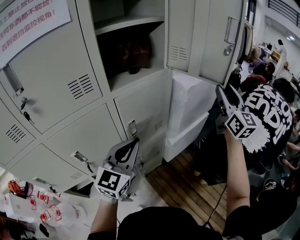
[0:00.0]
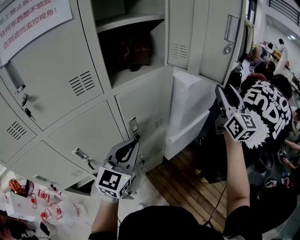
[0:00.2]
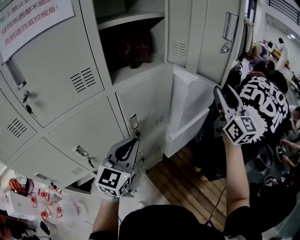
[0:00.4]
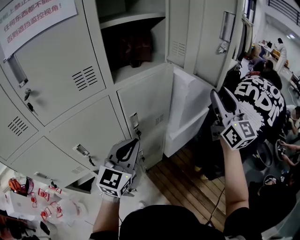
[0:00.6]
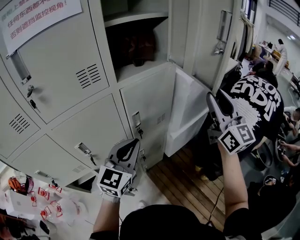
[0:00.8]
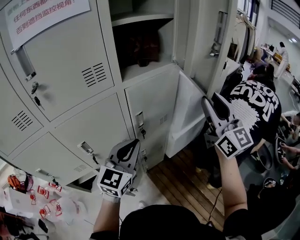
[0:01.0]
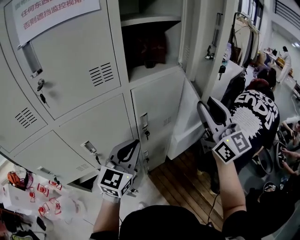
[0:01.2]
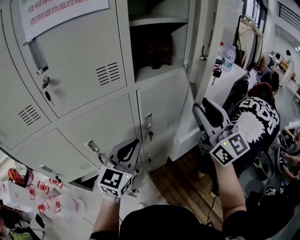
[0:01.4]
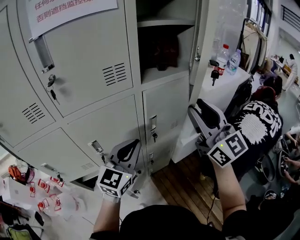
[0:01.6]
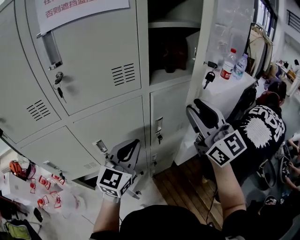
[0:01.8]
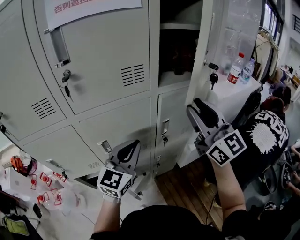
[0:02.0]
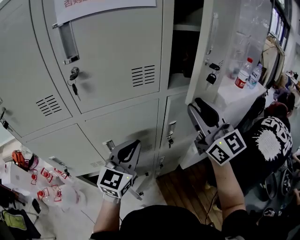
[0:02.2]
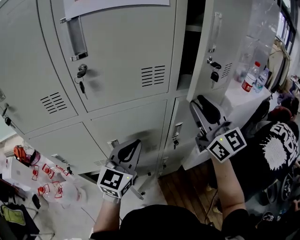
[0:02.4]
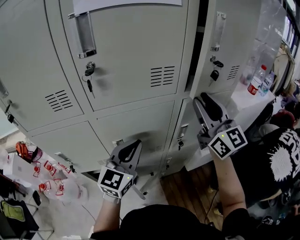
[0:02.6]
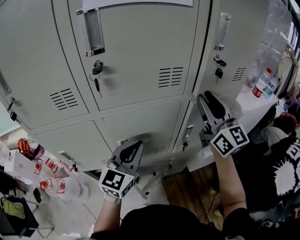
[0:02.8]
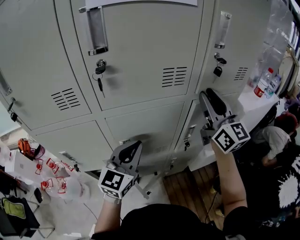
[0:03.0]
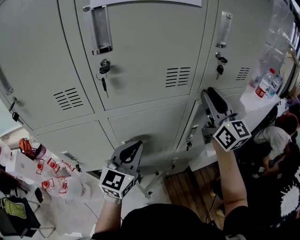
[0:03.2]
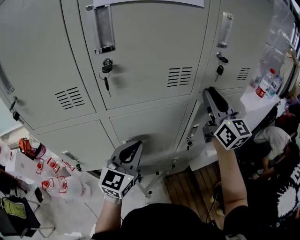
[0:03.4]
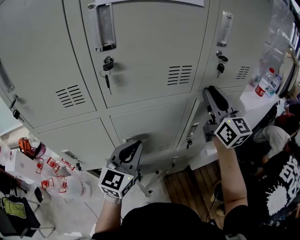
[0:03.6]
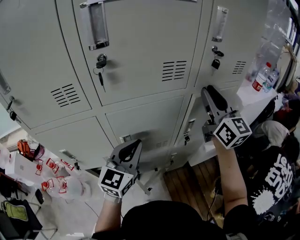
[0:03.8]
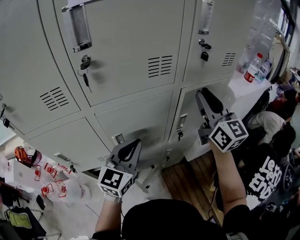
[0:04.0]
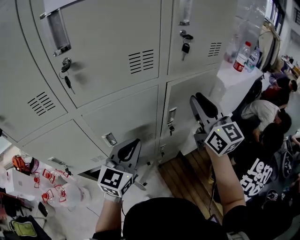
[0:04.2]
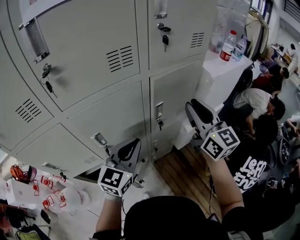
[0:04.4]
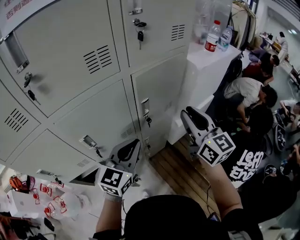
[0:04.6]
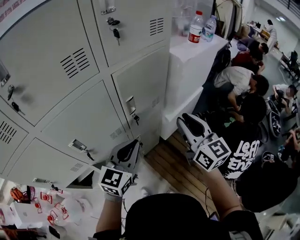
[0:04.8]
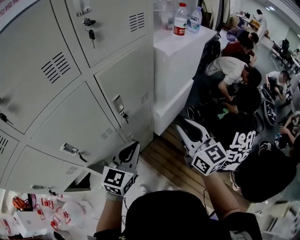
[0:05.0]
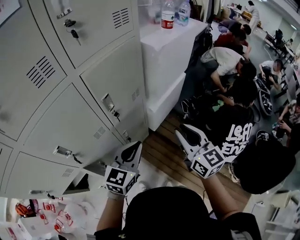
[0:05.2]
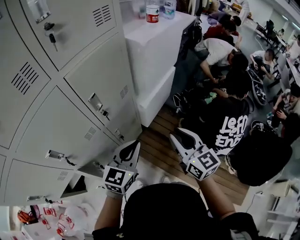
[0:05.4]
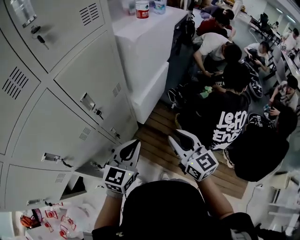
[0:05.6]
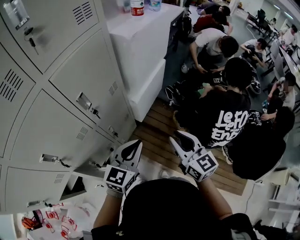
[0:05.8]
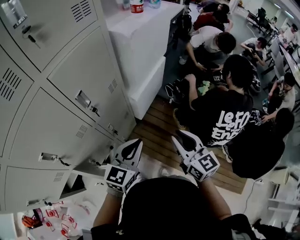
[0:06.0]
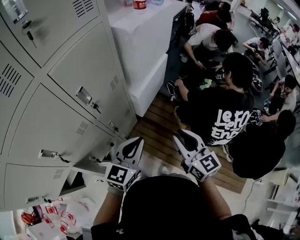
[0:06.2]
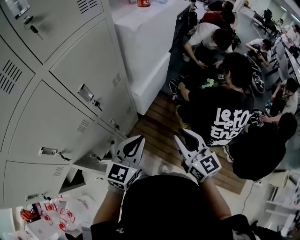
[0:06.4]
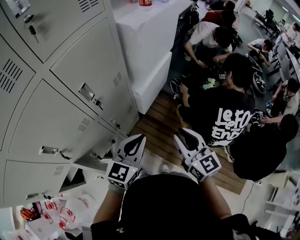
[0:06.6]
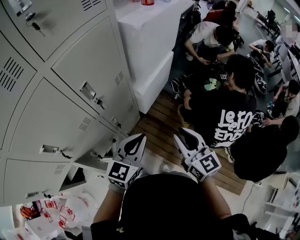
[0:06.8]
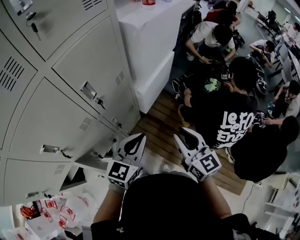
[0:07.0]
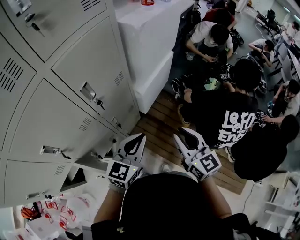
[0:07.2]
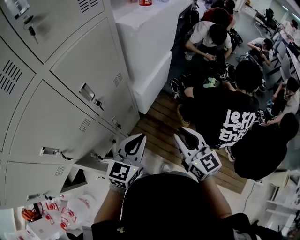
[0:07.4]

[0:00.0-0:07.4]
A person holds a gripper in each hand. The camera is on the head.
0:00.0 to 0:01.4: The left gripper is displaced to the left by approximately 5 cm. The right gripper heads to the left and backward, covering approximately 25 cm, and changes its angle by roughly 20 degrees.
0:01.4 to 0:03.0: The left gripper travels to the left by roughly 15 cm. Meanwhile the right gripper heads forward and to the left, covering roughly 20 cm.
0:03.0 to 0:04.4: The right gripper heads downward, backward and to the right, covering roughly 15 cm, while the left gripper shifts about 10 cm to the right.
0:04.4 to 0:06.0: The left gripper shifts by some 25 cm, and swivels some 30 degrees; the right gripper moves roughly 35 cm, and changes its angle by roughly 30 degrees.
0:06.0 to 0:07.4: The grippers stay close to where they were, moving slightly.

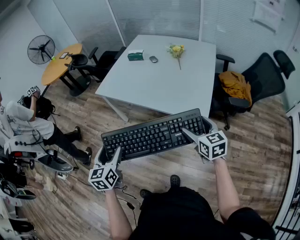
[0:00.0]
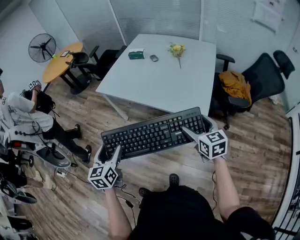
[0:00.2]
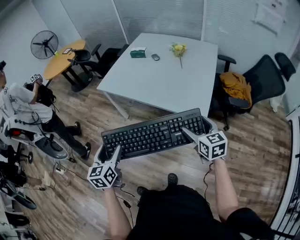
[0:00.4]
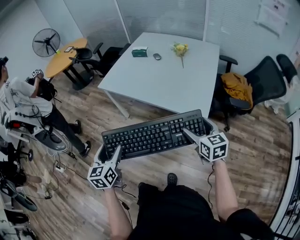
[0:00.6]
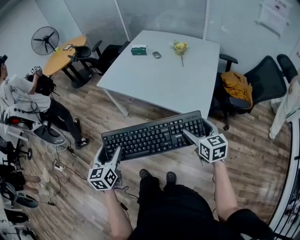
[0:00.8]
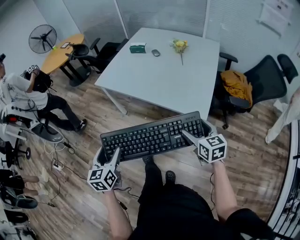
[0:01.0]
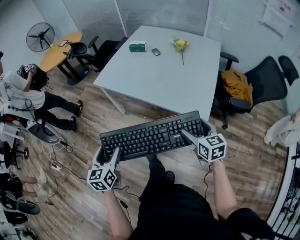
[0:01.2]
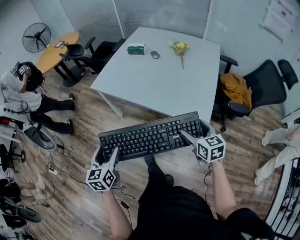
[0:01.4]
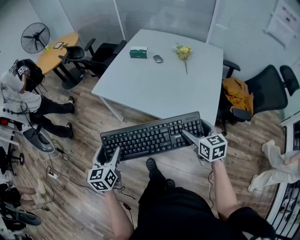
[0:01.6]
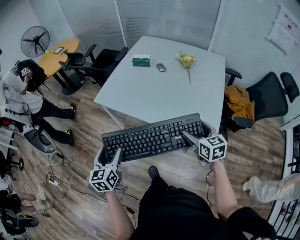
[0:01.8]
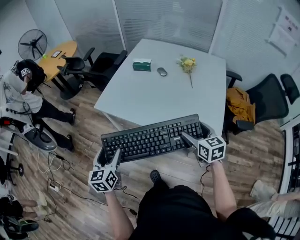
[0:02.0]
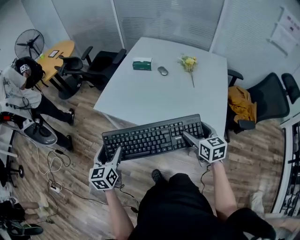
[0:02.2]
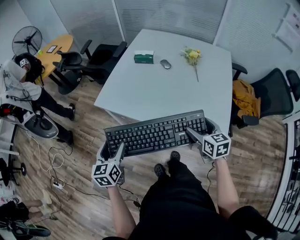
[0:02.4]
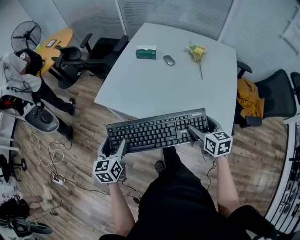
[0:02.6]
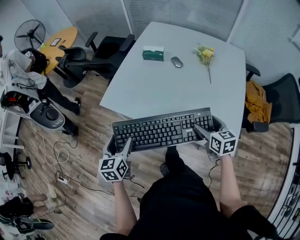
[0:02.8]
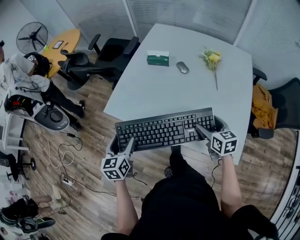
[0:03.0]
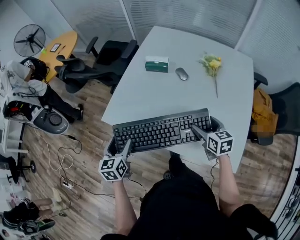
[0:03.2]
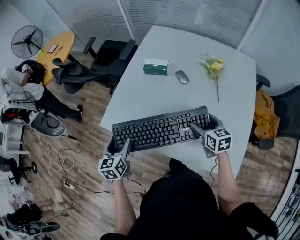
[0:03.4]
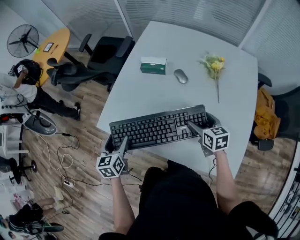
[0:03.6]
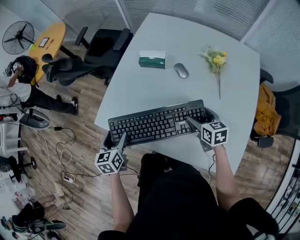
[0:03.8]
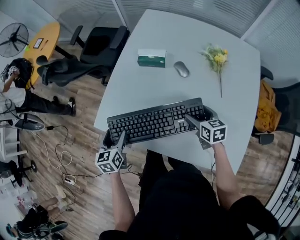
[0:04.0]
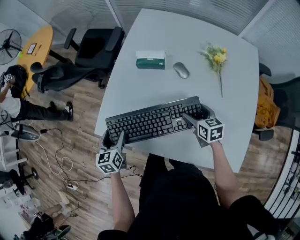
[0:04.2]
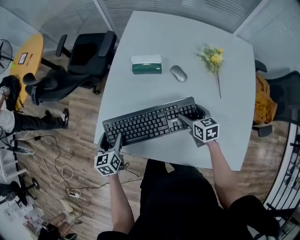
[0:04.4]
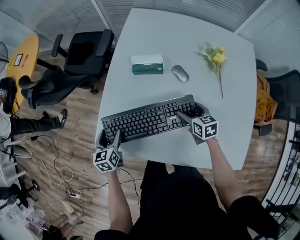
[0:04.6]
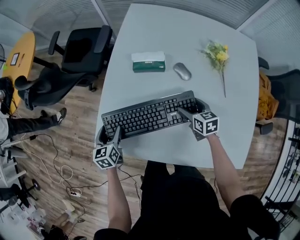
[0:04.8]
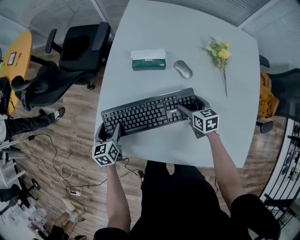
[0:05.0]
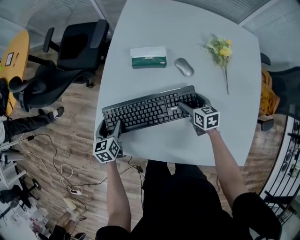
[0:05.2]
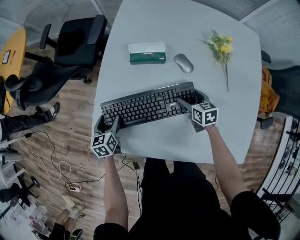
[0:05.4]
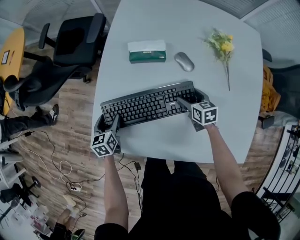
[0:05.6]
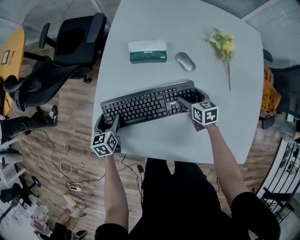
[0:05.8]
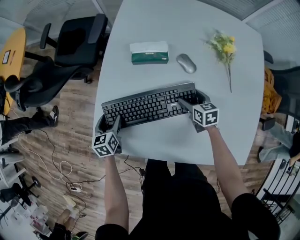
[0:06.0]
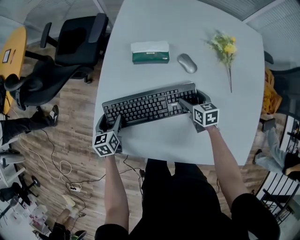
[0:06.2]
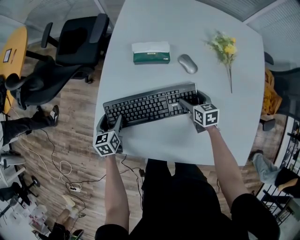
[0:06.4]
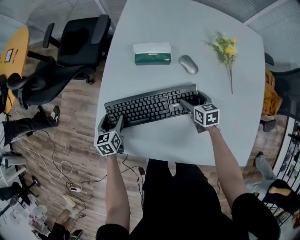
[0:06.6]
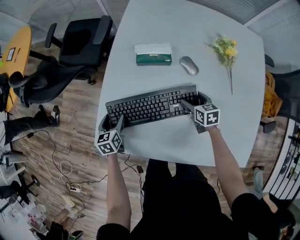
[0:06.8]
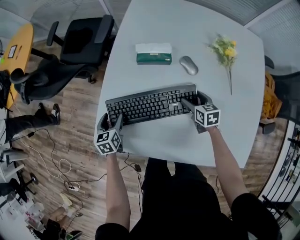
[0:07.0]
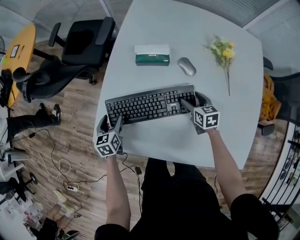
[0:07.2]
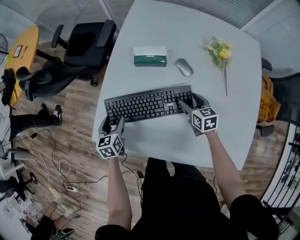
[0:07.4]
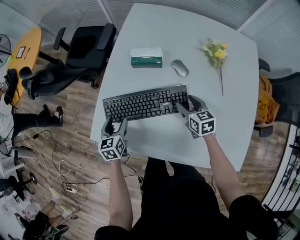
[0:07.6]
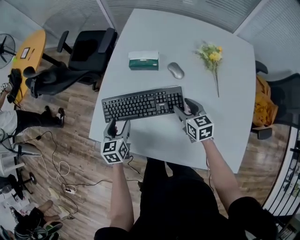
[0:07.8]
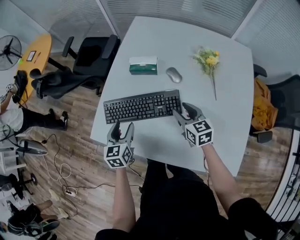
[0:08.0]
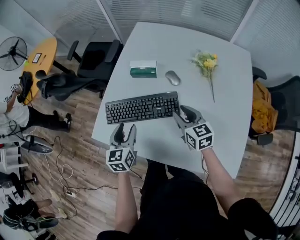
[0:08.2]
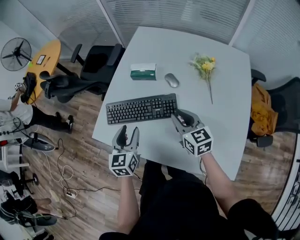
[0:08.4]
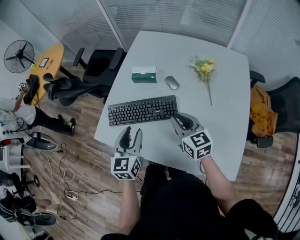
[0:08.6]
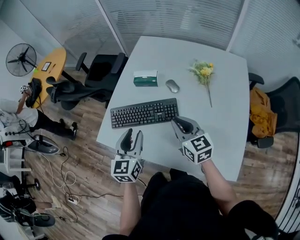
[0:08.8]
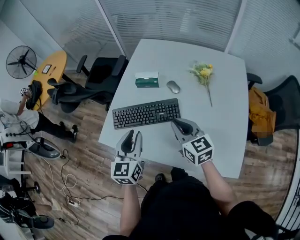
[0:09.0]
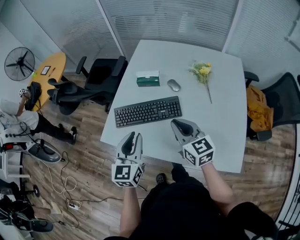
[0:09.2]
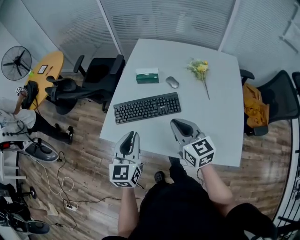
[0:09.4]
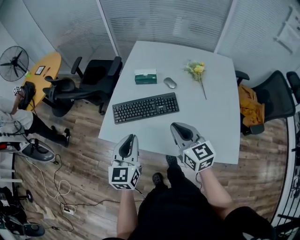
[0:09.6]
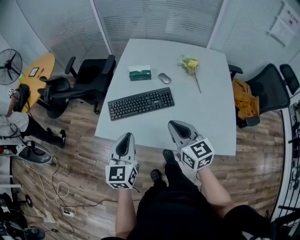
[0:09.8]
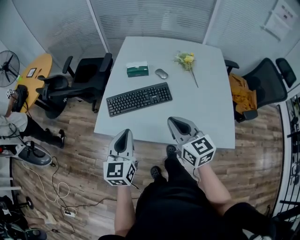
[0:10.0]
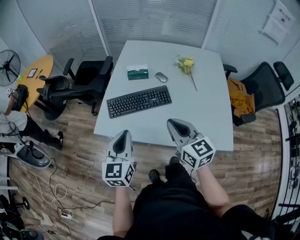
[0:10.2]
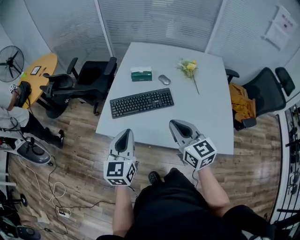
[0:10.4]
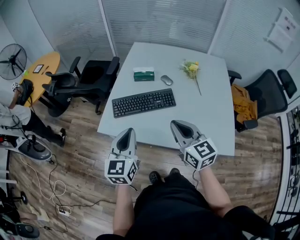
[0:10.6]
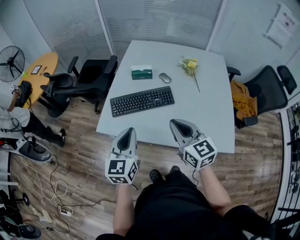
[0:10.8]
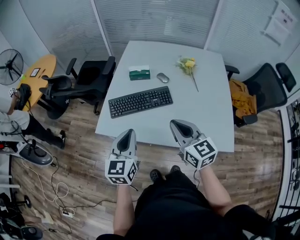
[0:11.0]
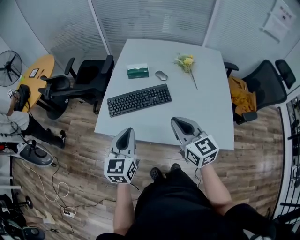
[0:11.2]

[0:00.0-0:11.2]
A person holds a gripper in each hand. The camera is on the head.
0:00.0 to 0:01.6: Both grippers move forward, about 10 cm.
0:01.6 to 0:03.2: Both grippers move forward, about 35 cm.
0:03.2 to 0:04.8: Both grippers travel together forward and downward, roughly 25 cm.
0:04.8 to 0:06.4: Both grippers travel together downward, about 5 cm.
0:06.4 to 0:08.0: The right gripper moves upward and backward, roughly 15 cm, changes its angle by roughly 20 degrees, and closes. Meanwhile the left gripper is displaced upward, to the right and backward by roughly 20 cm.
0:08.0 to 0:09.6: The left gripper travels upward and backward by some 25 cm, changes its angle by about 20 degrees, and closes its fingers. Meanwhile the right gripper shifts approximately 25 cm backward, upward and to the left, and closes.
0:09.6 to 0:11.2: The right gripper is displaced backward by about 5 cm.

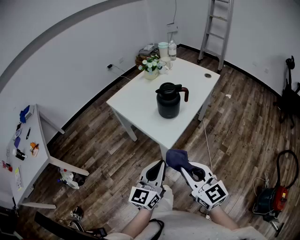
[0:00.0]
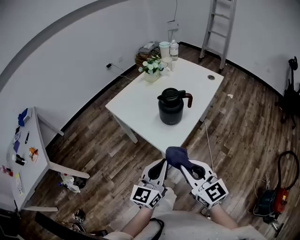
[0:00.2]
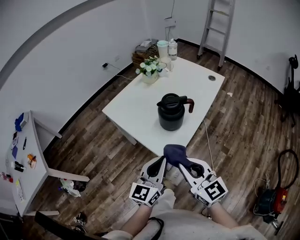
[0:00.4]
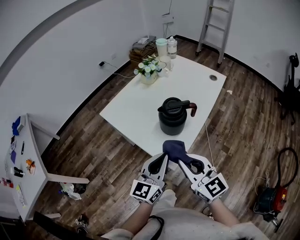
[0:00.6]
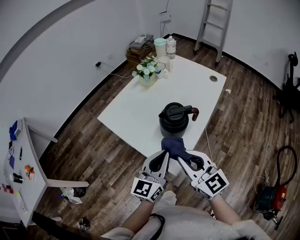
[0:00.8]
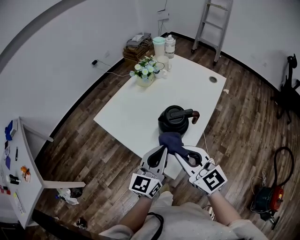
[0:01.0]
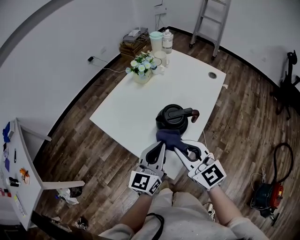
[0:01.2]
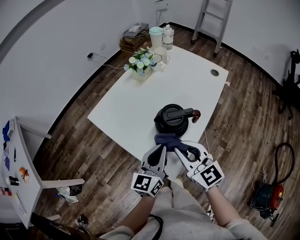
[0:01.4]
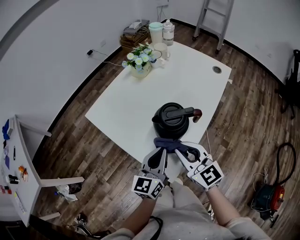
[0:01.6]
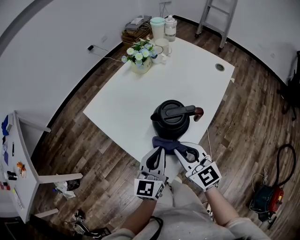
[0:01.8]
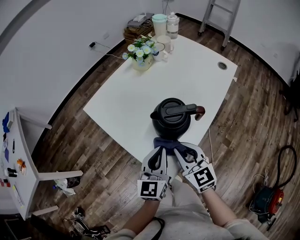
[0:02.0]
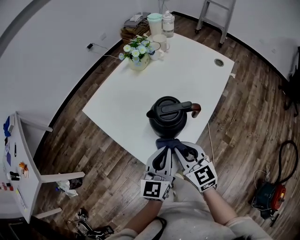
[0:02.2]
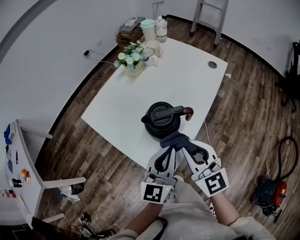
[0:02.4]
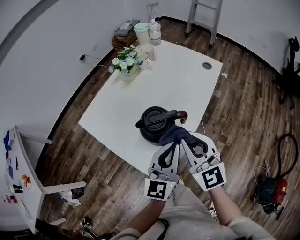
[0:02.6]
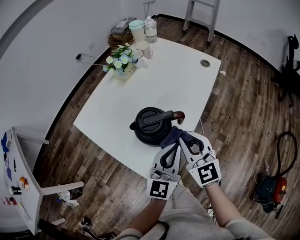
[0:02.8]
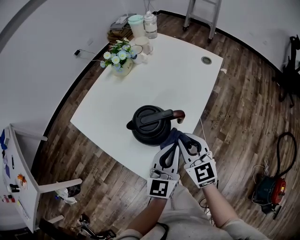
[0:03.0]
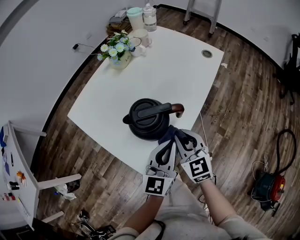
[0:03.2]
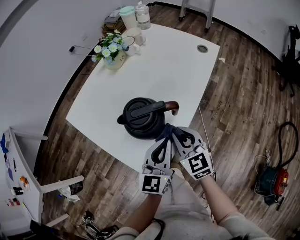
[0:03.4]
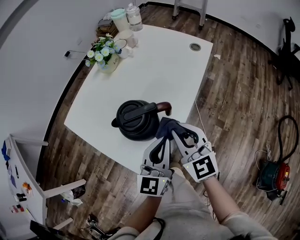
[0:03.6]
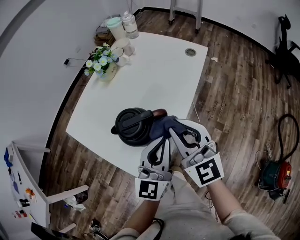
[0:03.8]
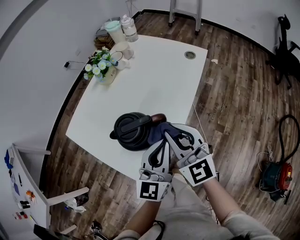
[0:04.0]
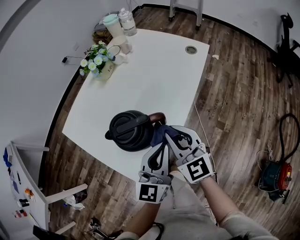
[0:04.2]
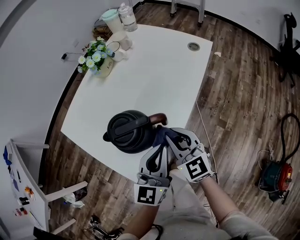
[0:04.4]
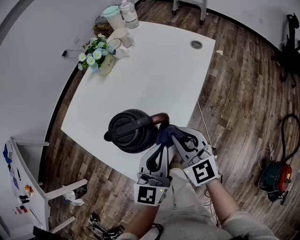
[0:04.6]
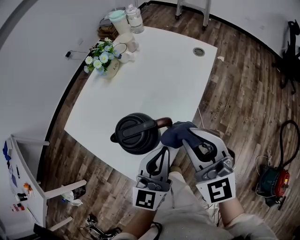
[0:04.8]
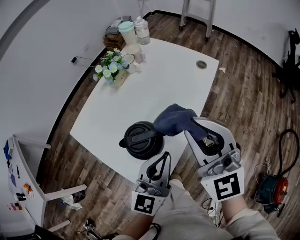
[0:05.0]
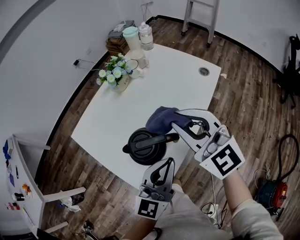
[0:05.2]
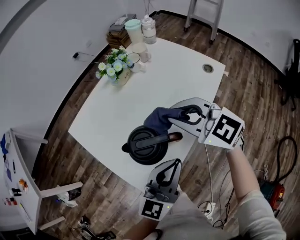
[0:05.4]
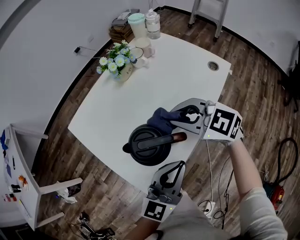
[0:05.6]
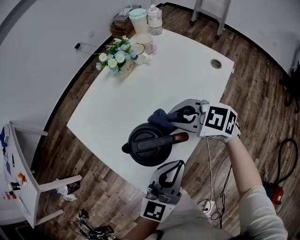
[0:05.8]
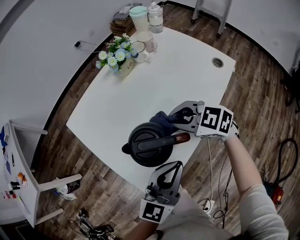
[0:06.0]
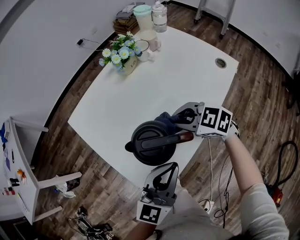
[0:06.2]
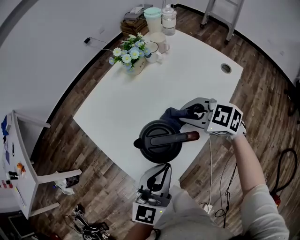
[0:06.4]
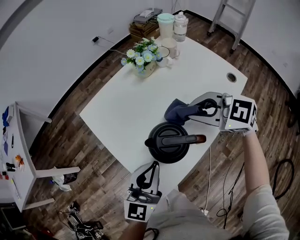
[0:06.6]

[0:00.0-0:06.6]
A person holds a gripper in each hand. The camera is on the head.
0:00.0 to 0:01.6: Both grippers travel together forward, some 30 cm.
0:01.6 to 0:03.2: The left gripper shifts roughly 10 cm to the right, while the right gripper goes up and down, roughly 15 cm each way, reversing 2 times.
0:03.2 to 0:05.0: The left gripper moves up and down over some 10 cm, changing direction 2 times, while the right gripper goes up and down, some 25 cm each way, reversing 2 times, and changes its angle by approximately 30 degrees.
0:05.0 to 0:06.6: The left gripper changes place by some 10 cm. The right gripper shifts about 15 cm downward, and tilts its fingers some 30 degrees downward.
